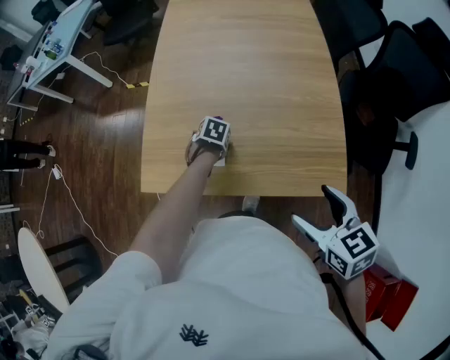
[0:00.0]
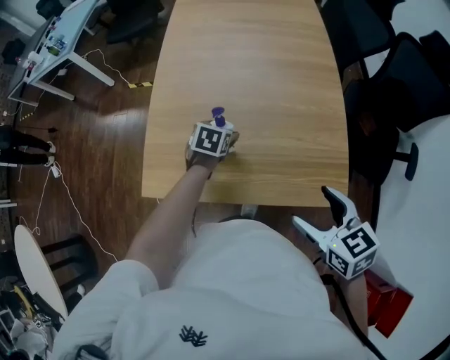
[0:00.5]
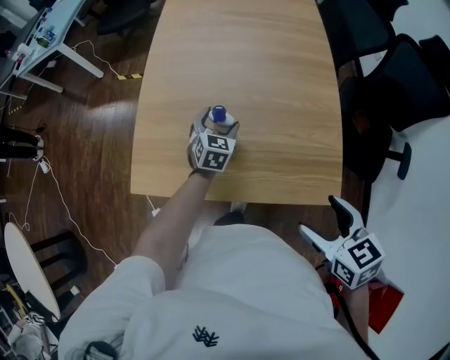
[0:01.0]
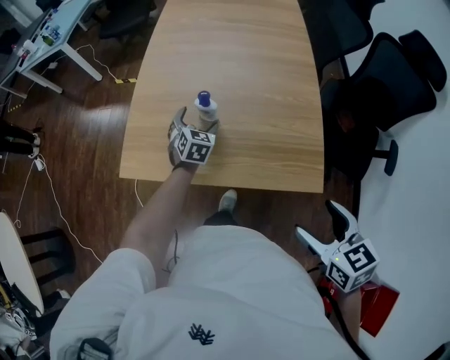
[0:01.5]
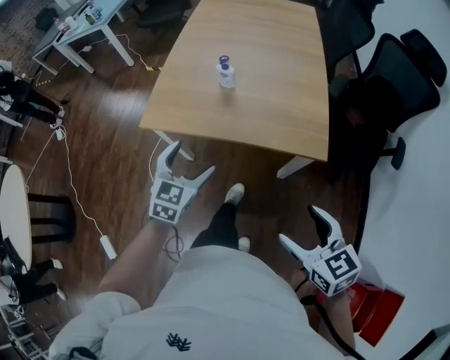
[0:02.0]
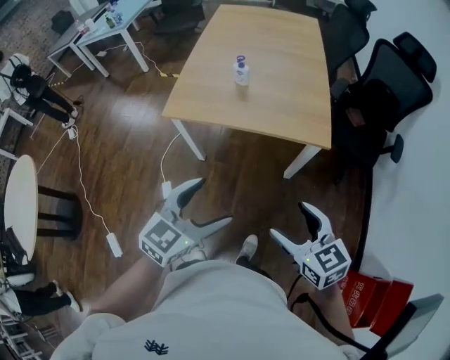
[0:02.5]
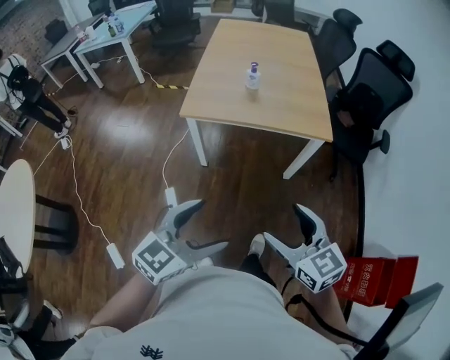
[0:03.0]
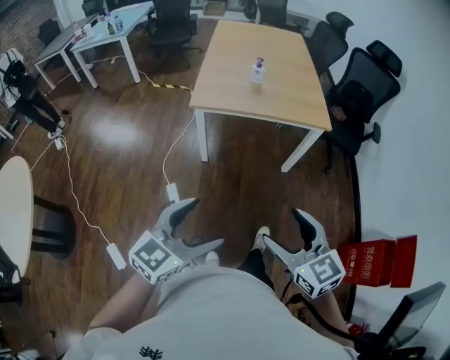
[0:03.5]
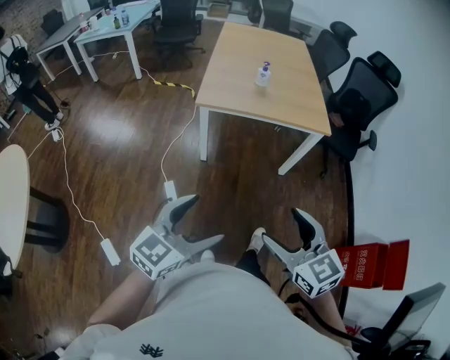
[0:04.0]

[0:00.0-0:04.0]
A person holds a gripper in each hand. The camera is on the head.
0.0 to 2.0 s: The left gripper moves roughly 35 cm, and tips its fingers upward by some 50 degrees; the right gripper moves about 20 cm.
2.0 to 4.0 s: The left gripper moves backward, approximately 35 cm, and turns by roughly 30 degrees. Meanwhile the right gripper moves to the left and backward, some 35 cm.

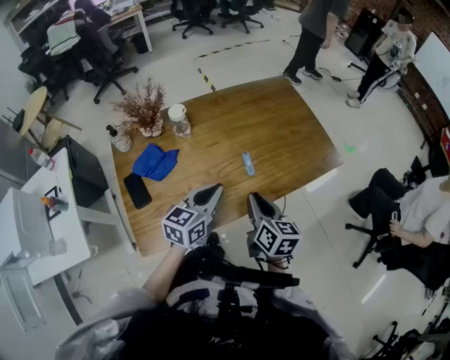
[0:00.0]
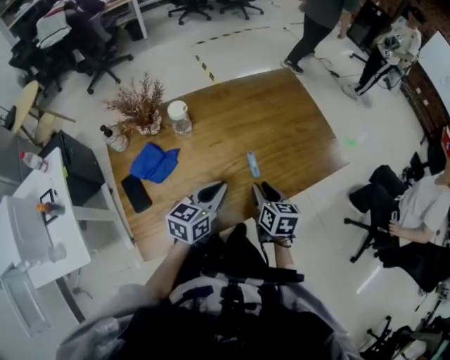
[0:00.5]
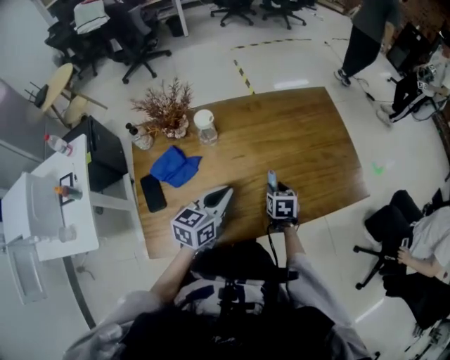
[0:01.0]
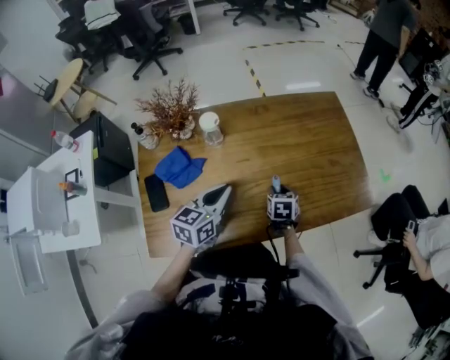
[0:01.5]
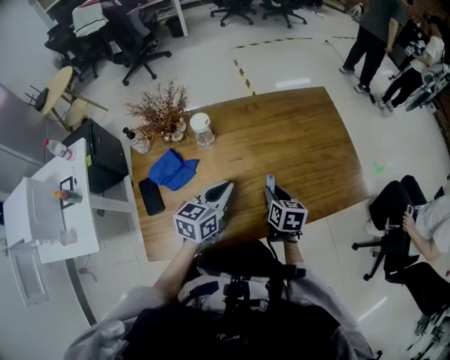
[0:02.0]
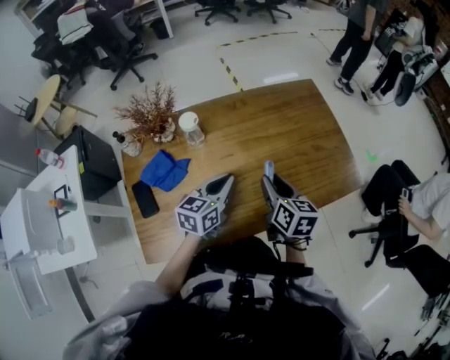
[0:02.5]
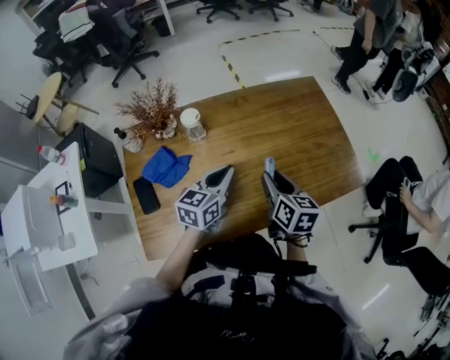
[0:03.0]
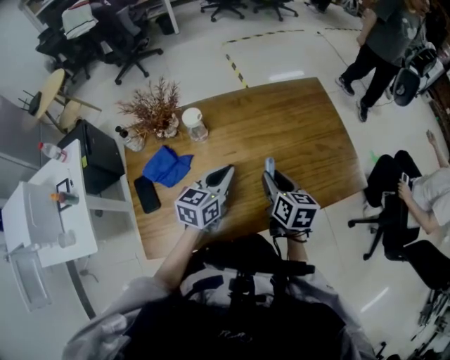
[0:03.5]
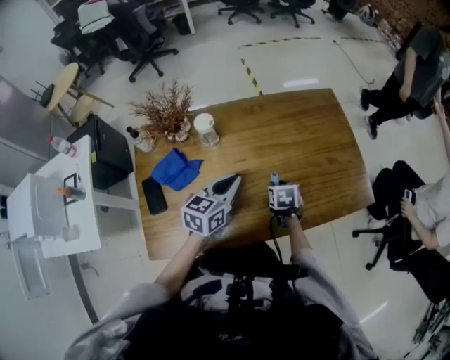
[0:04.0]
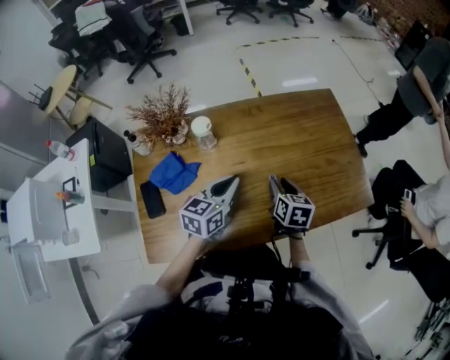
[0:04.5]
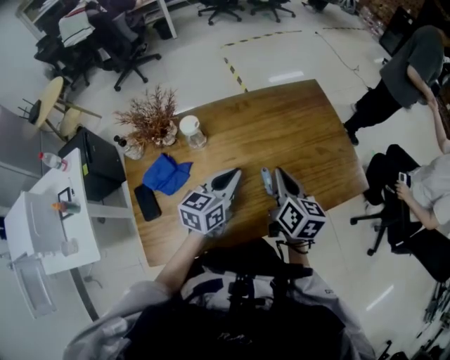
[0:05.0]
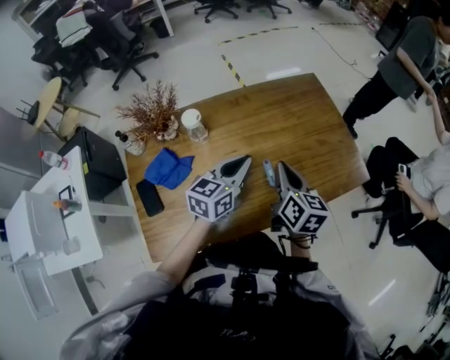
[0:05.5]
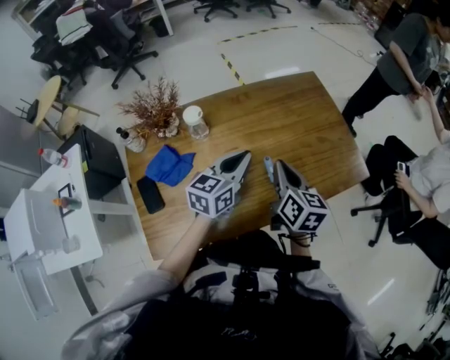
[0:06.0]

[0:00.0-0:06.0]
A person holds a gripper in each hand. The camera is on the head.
0.0 to 2.0 s: The left gripper travels forward by roughly 10 cm; the right gripper is displaced forward and downward by approximately 20 cm, and rotates approximately 20 degrees.
2.0 to 4.0 s: The right gripper heads downward, covering some 5 cm.
4.0 to 6.0 s: The right gripper travels upward by approximately 20 cm, tilts its fingers some 40 degrees upward, and closes its fingers. Meanwhile the left gripper ends up about 5 cm from where it was.

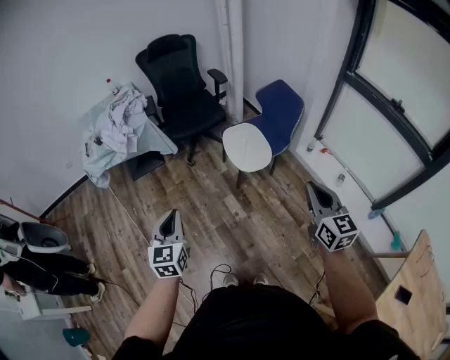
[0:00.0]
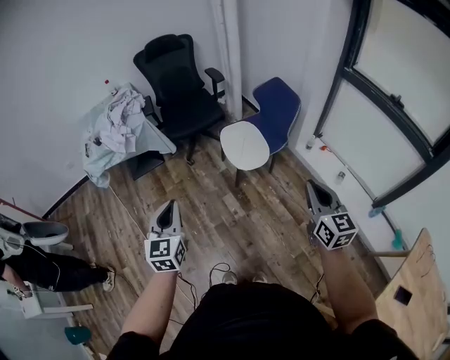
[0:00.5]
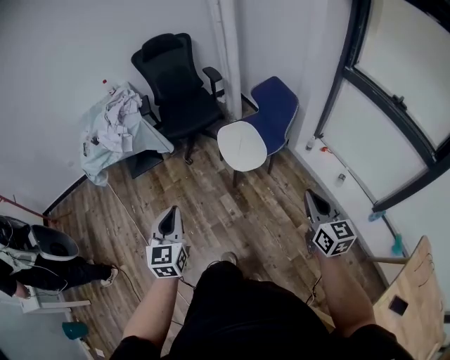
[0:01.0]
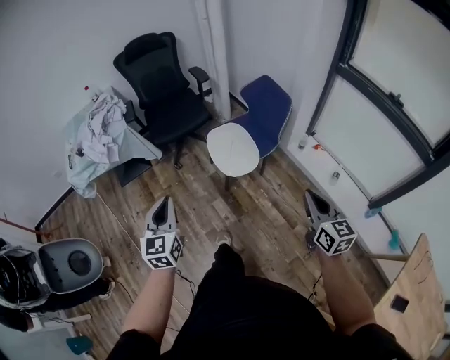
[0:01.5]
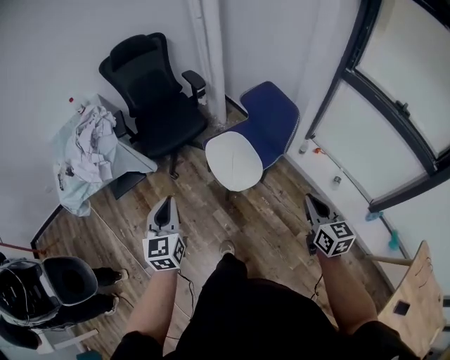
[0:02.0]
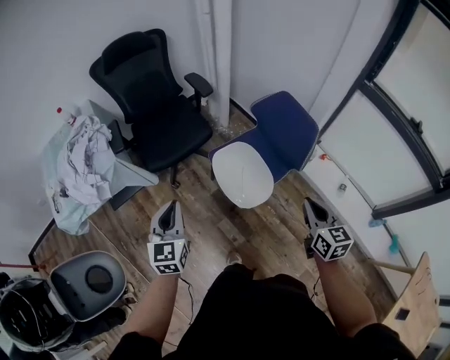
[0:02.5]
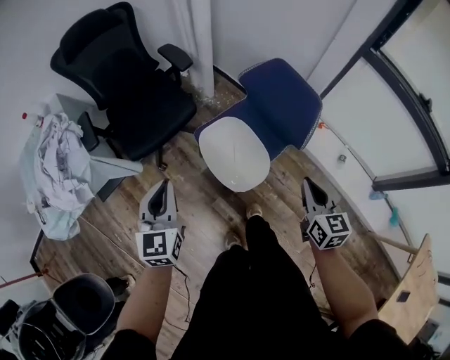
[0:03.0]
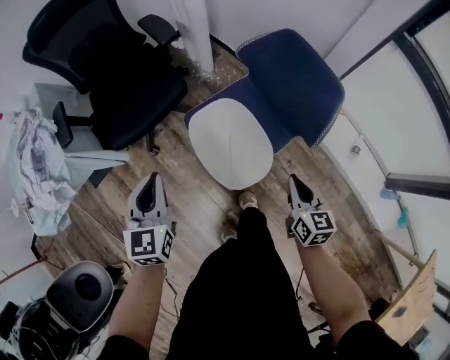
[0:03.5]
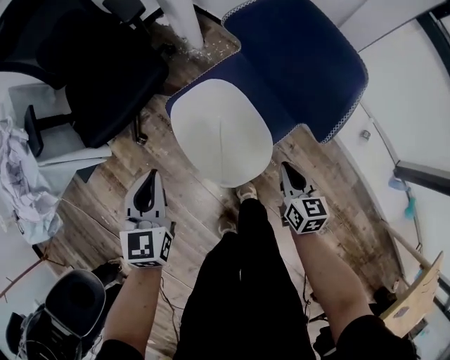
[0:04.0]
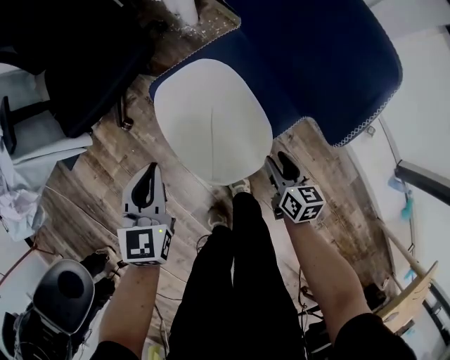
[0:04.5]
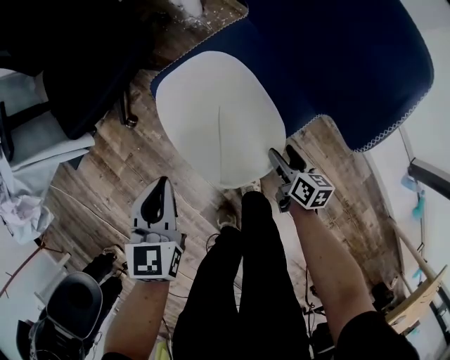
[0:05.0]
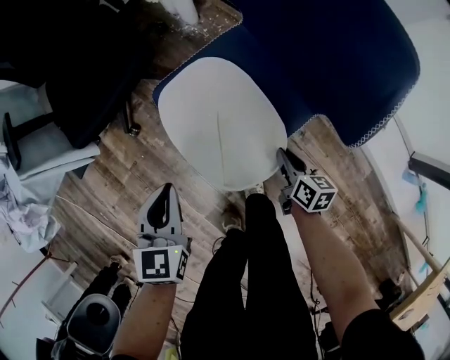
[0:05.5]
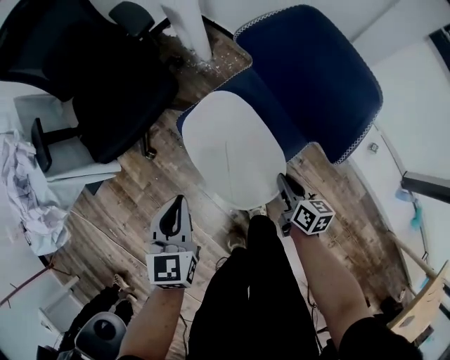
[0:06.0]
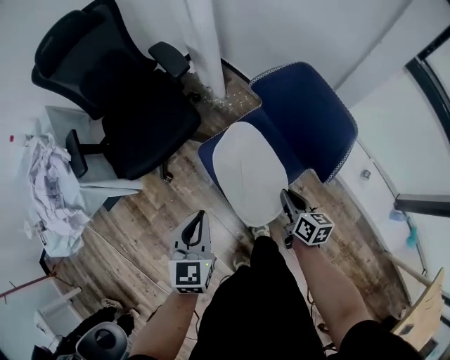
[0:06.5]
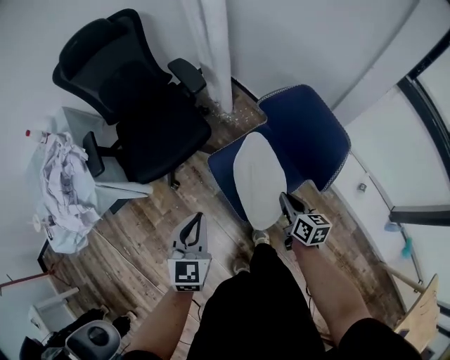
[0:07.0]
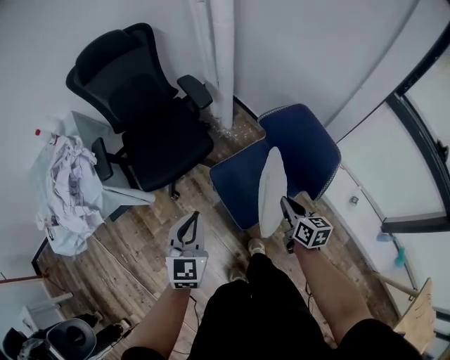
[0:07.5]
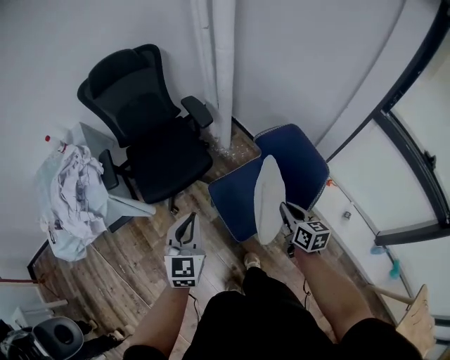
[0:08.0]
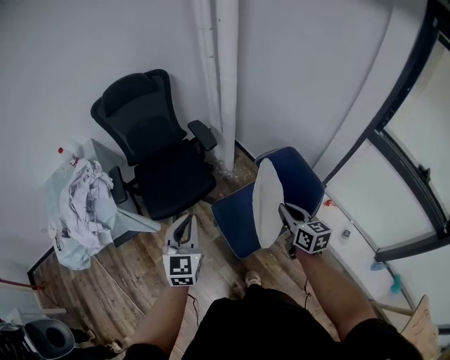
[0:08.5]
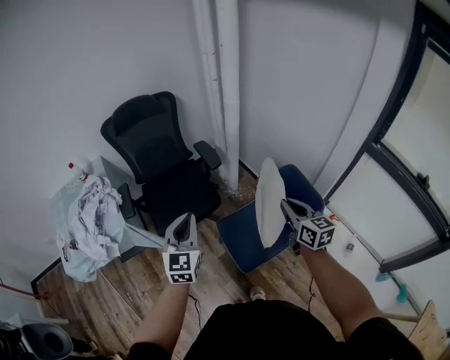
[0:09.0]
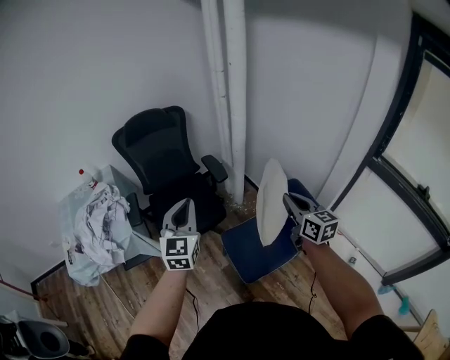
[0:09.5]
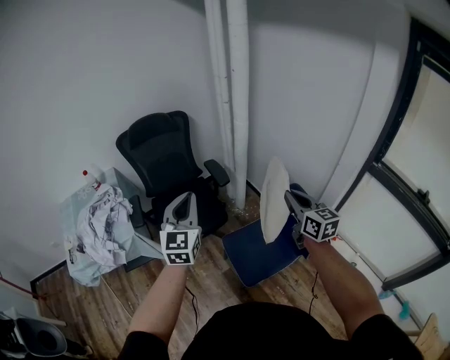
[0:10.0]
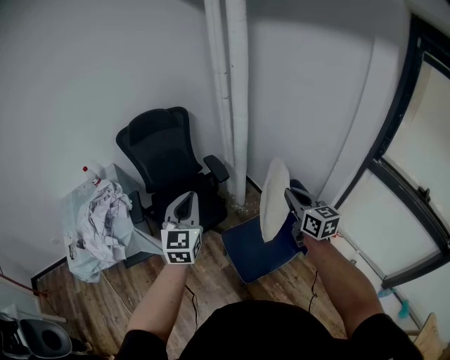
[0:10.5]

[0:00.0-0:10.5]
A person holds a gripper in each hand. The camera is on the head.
0.0 to 2.0 s: The left gripper travels forward by roughly 25 cm; the right gripper is displaced forward, downward and to the right by about 20 cm.
2.0 to 4.0 s: The left gripper is displaced forward and downward by approximately 40 cm, while the right gripper moves downward and forward, some 50 cm.
4.0 to 6.5 s: The right gripper heads to the left, covering roughly 5 cm, moves roughly 15 cm downward and comes back, and opens, then closes again. The left gripper heads upward, covering about 5 cm.
6.5 to 8.5 s: Both grippers travel together upward, some 25 cm. The right gripper turns by roughly 20 degrees.
8.5 to 10.5 s: Both grippers move upward, approximately 15 cm.

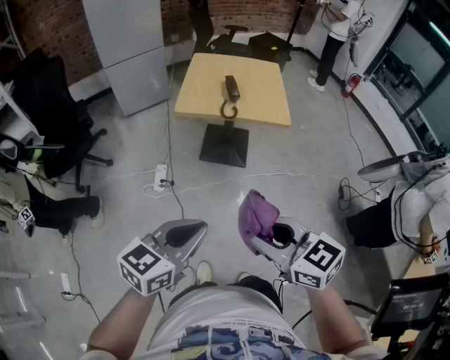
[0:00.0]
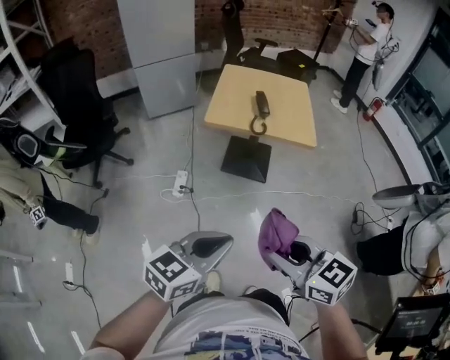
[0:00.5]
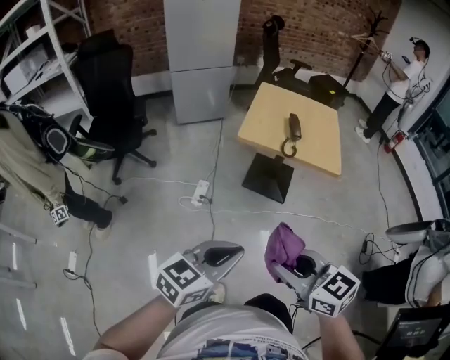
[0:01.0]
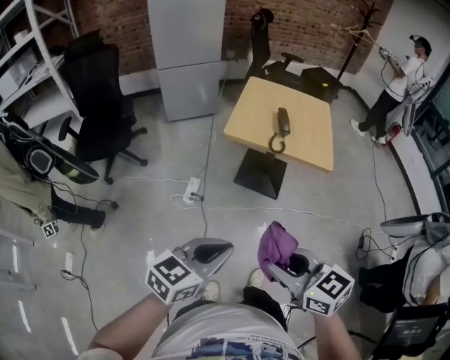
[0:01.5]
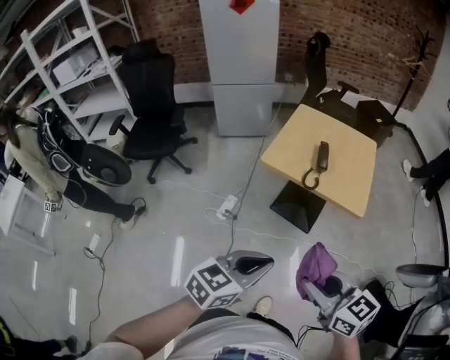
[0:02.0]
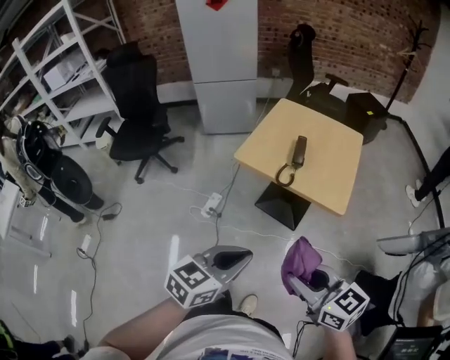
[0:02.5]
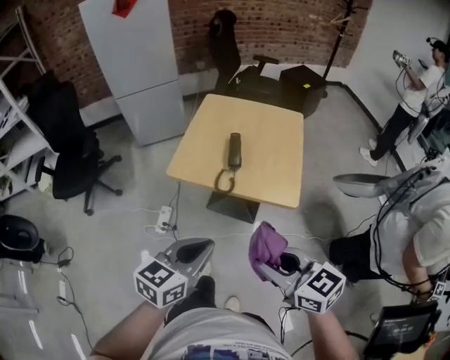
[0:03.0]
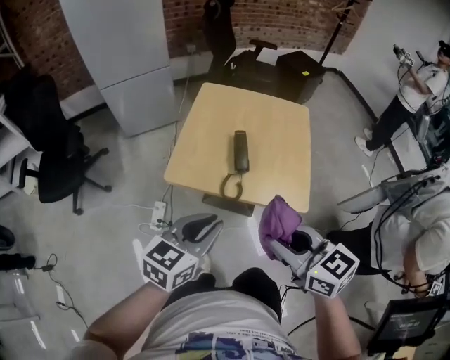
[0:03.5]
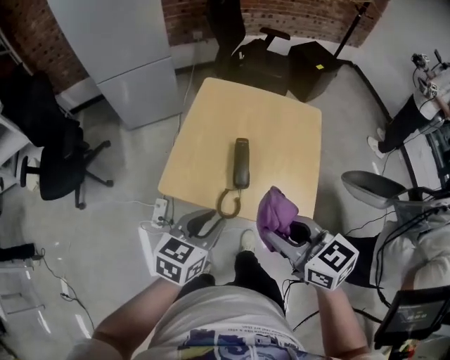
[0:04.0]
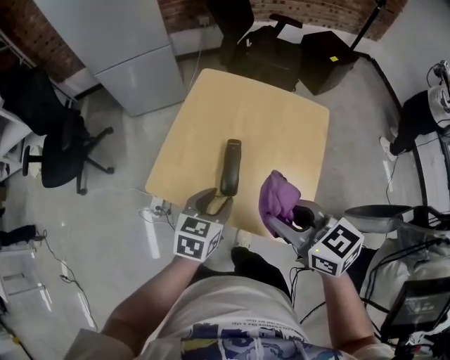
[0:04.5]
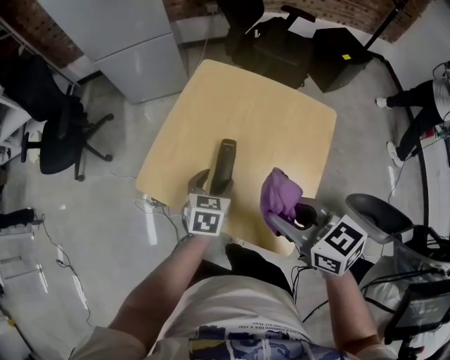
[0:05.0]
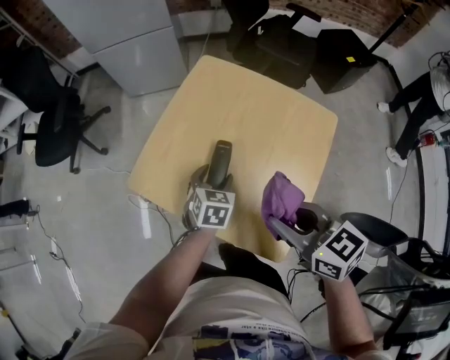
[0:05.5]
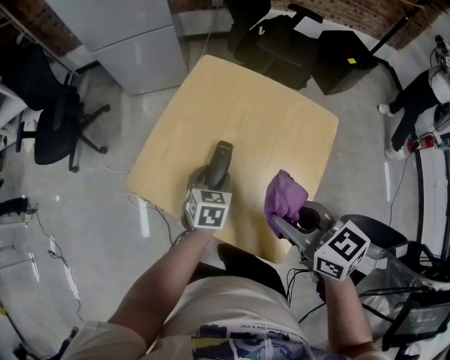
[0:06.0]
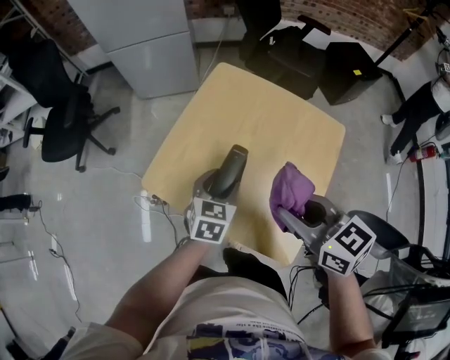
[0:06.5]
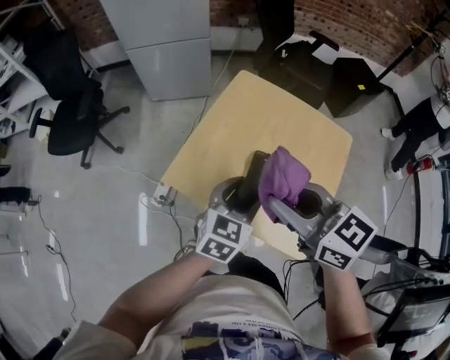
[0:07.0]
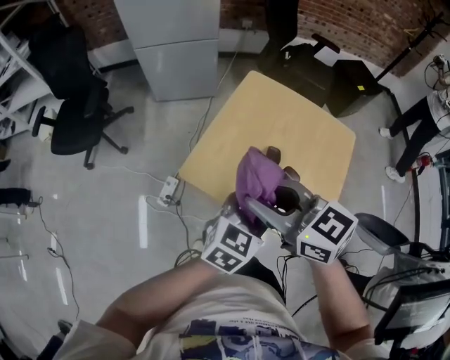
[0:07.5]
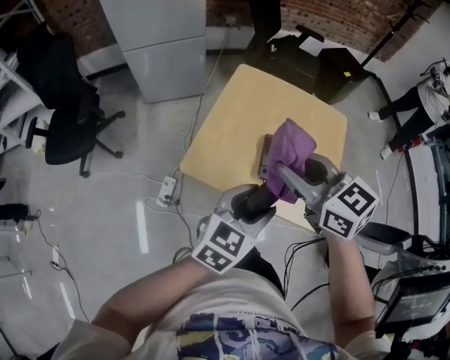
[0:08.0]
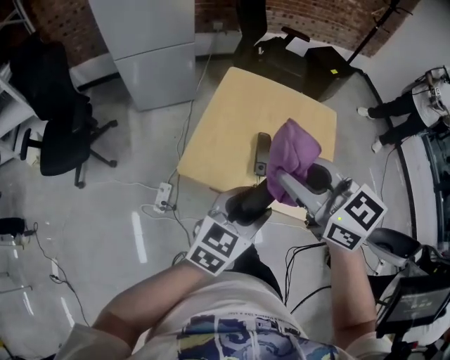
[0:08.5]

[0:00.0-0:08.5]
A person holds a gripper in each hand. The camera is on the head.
0.0 to 2.0 s: Both grippers travel together forward and to the right, some 15 cm.
2.0 to 4.0 s: The grippers both shift forward by roughly 30 cm.
4.0 to 6.5 s: The right gripper shifts some 15 cm to the right and forward, while the left gripper travels forward, to the right and downward by some 20 cm, changes its angle by roughly 30 degrees, and opens its fingers.
6.5 to 8.5 s: The left gripper shifts some 20 cm backward and upward, and swivels about 30 degrees. Meanwhile the right gripper goes approximately 20 cm to the left and upward.
